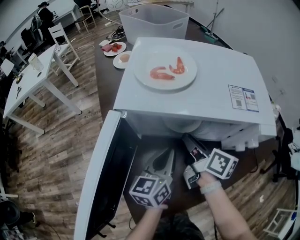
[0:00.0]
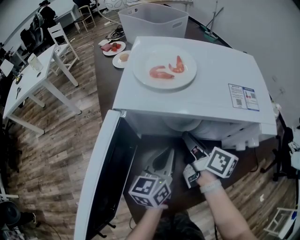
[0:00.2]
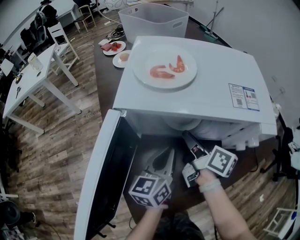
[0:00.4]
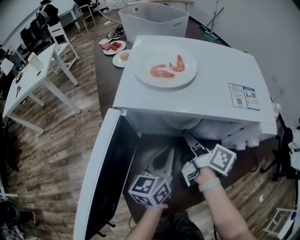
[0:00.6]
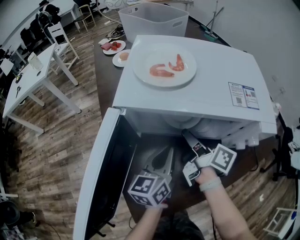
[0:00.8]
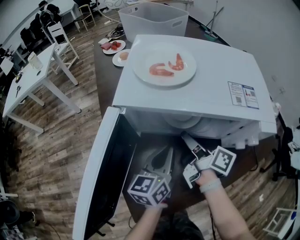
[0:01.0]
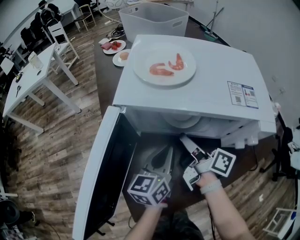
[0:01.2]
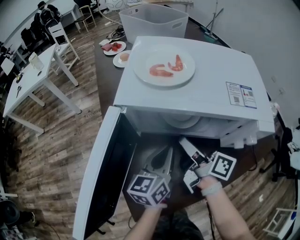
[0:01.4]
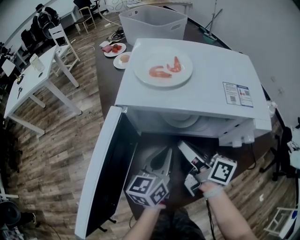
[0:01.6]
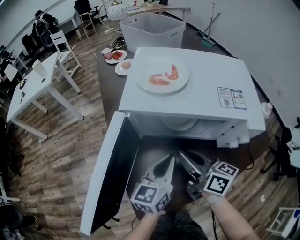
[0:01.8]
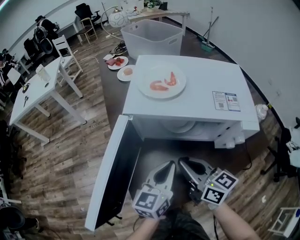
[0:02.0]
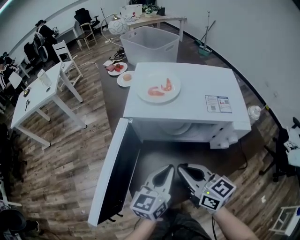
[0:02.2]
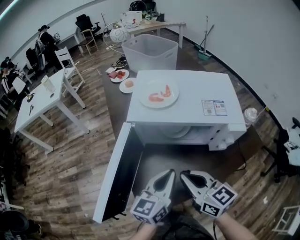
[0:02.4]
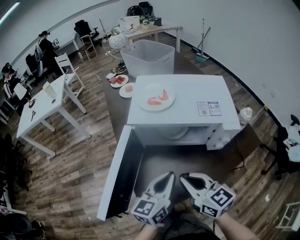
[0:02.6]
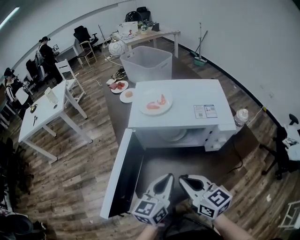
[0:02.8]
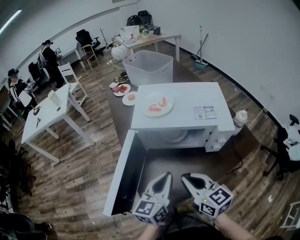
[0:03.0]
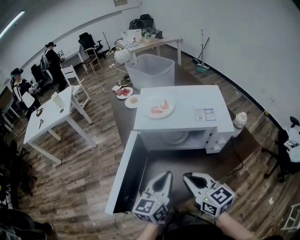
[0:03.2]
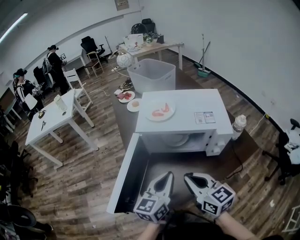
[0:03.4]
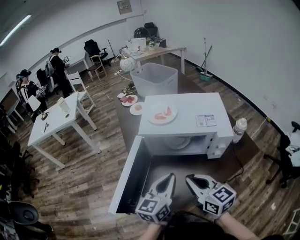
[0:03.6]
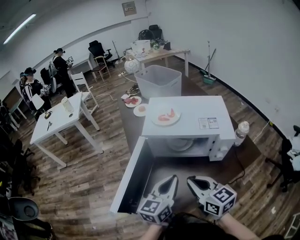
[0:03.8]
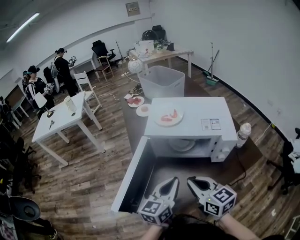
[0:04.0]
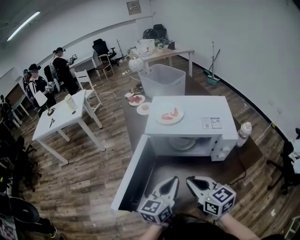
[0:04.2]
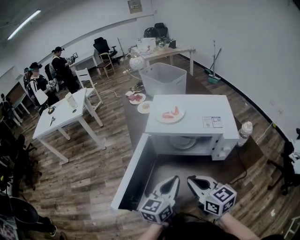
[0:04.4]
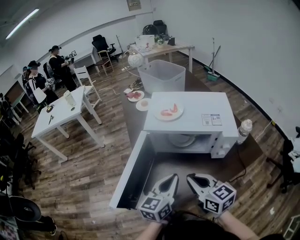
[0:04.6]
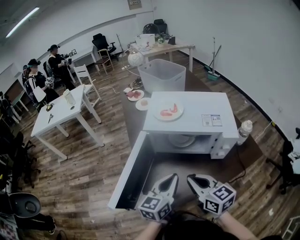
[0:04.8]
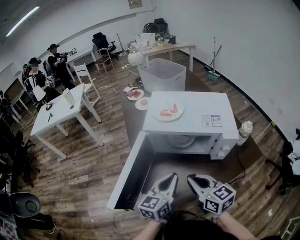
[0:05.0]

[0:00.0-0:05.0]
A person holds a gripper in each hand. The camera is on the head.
0:00.0 to 0:01.6: The right gripper moves some 5 cm.
0:01.6 to 0:03.4: The left gripper moves upward and backward, some 15 cm. Meanwhile the right gripper travels backward and upward by some 20 cm, and rotates around the line of its fingers by some 50 degrees, counterclockwise from behind.
0:03.4 to 0:05.0: The grippers stay close to where they were, moving slightly.

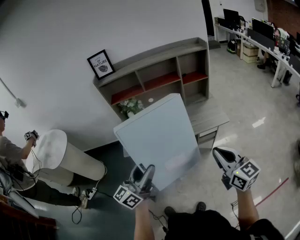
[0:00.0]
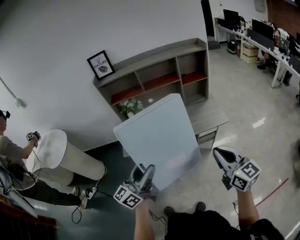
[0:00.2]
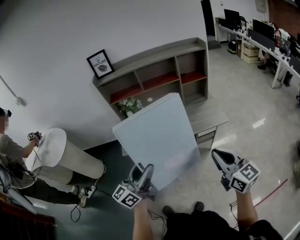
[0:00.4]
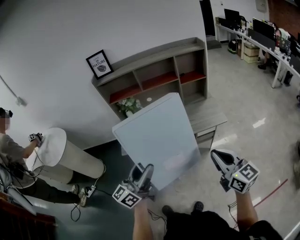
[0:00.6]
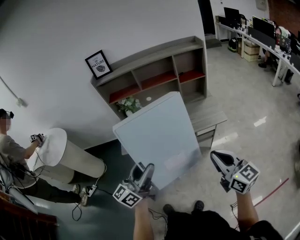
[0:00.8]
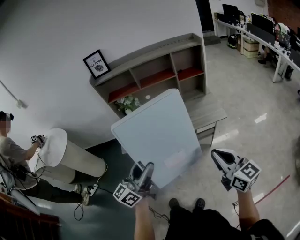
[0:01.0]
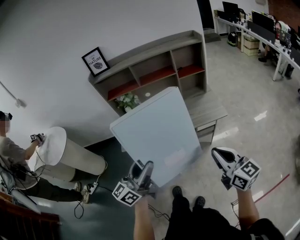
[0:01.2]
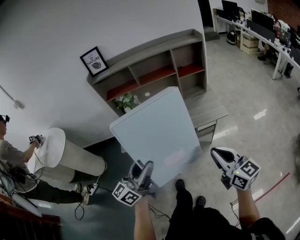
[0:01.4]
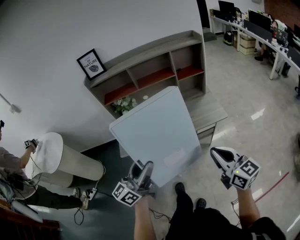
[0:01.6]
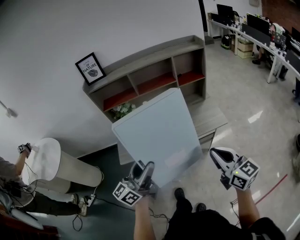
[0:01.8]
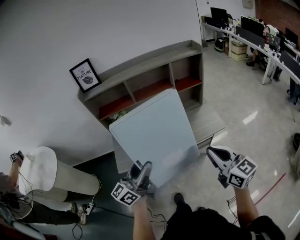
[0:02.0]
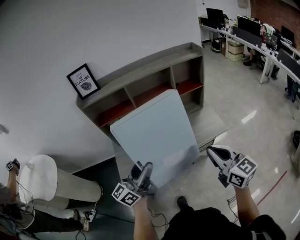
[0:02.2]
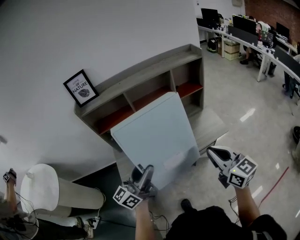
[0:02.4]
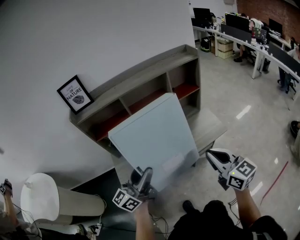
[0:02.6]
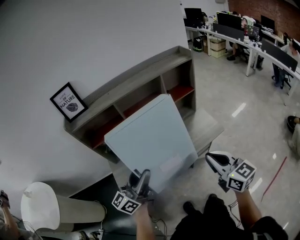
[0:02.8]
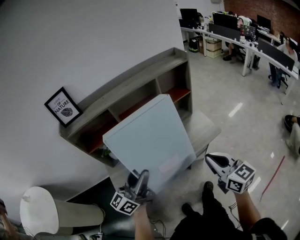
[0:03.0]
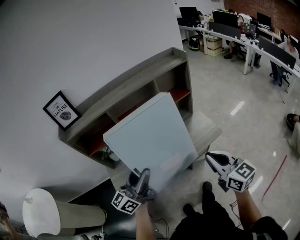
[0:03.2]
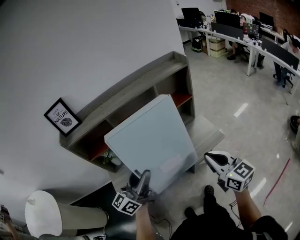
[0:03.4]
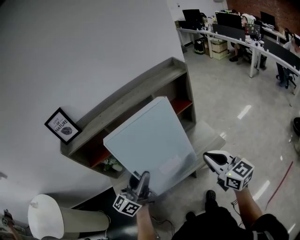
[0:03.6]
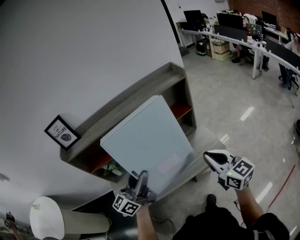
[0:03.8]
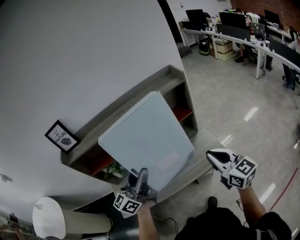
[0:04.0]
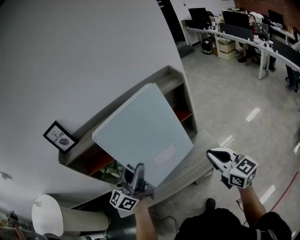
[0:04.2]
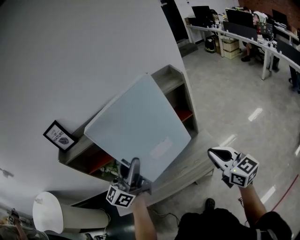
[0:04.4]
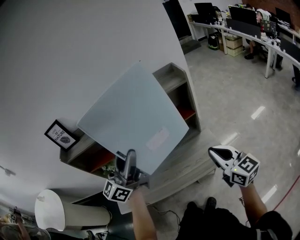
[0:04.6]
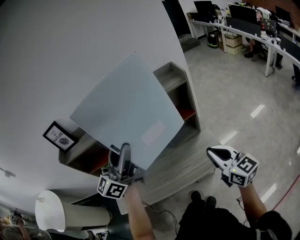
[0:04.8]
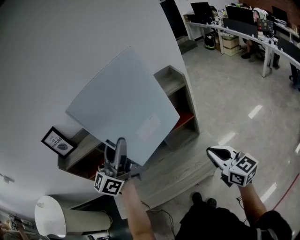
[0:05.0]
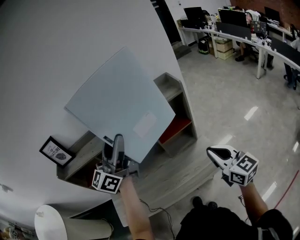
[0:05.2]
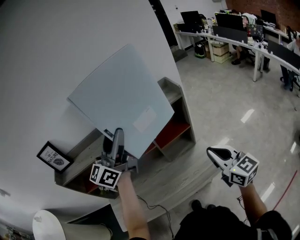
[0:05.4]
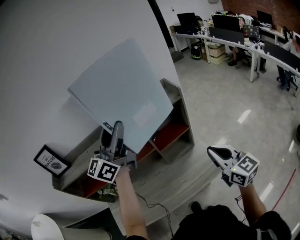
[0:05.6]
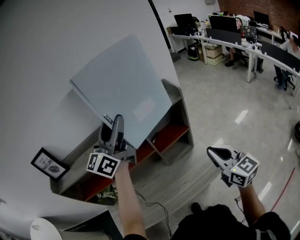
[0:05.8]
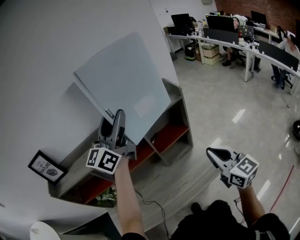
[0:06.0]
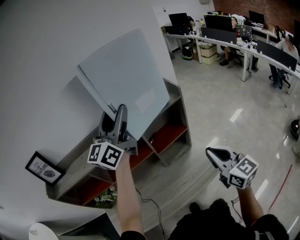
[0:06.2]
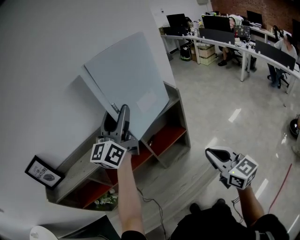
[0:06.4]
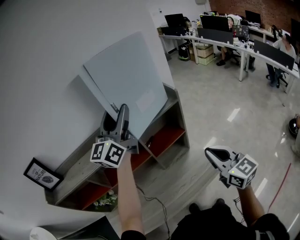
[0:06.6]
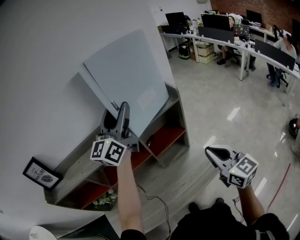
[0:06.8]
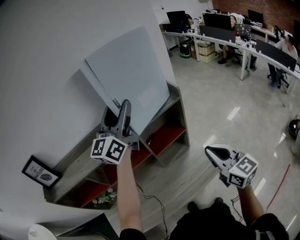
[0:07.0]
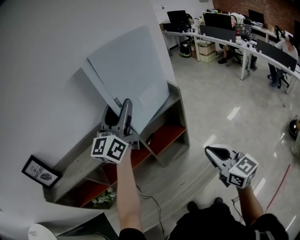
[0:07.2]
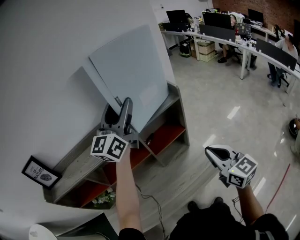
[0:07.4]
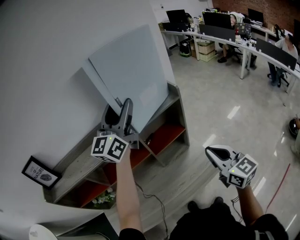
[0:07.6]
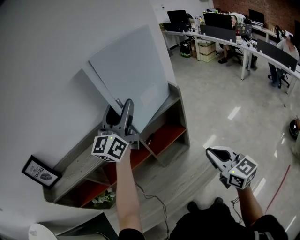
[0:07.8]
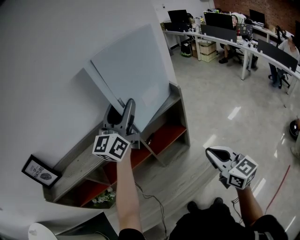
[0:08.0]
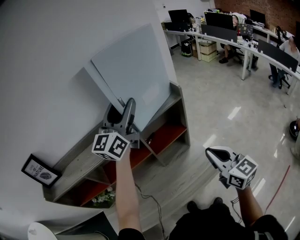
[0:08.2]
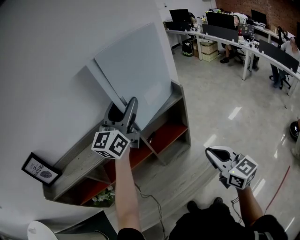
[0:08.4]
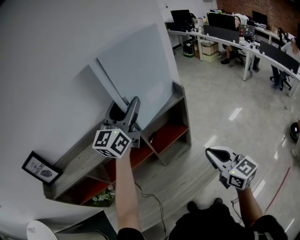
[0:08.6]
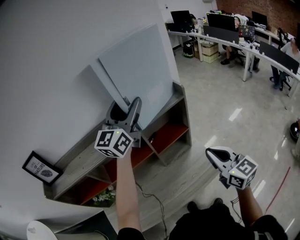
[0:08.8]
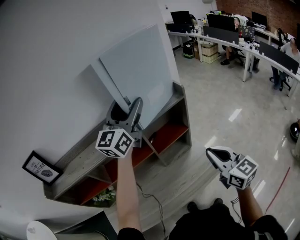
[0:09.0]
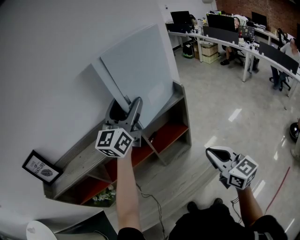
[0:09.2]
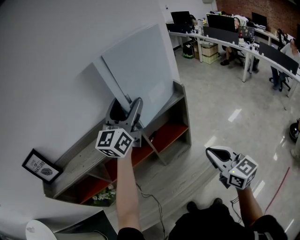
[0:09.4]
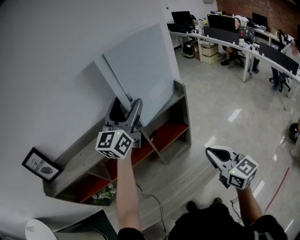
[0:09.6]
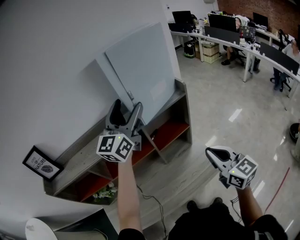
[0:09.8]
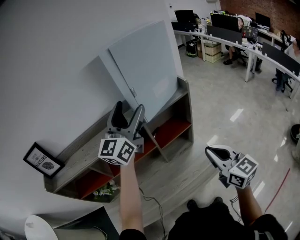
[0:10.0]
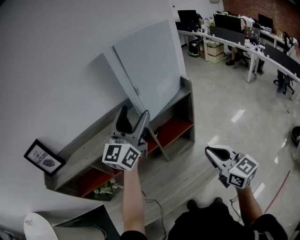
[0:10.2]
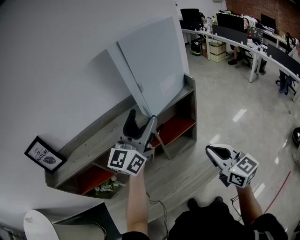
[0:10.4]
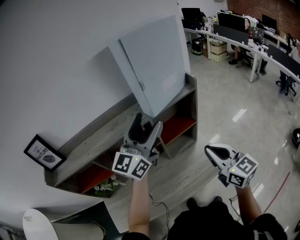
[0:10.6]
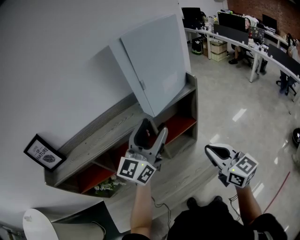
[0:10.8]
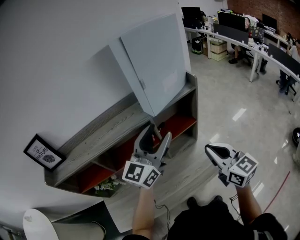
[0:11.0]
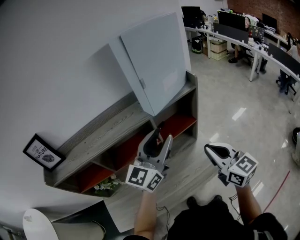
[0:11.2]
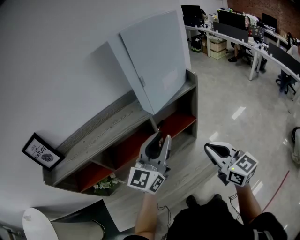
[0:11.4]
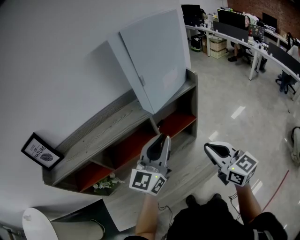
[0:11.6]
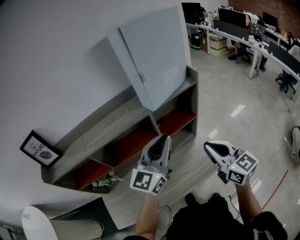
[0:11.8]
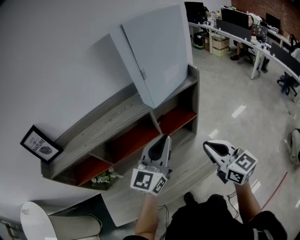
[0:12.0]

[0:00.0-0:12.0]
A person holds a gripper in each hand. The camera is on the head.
0:00.0 to 0:01.6: The grippers make only small movements.
0:01.6 to 0:03.0: Both grippers travel together forward, about 20 cm.
0:03.0 to 0:04.4: The right gripper is displaced forward and to the right by approximately 25 cm; the left gripper travels forward, to the right and upward by roughly 25 cm.
0:04.4 to 0:06.0: The right gripper goes approximately 10 cm forward. The left gripper goes about 25 cm forward and upward.
0:06.0 to 0:07.6: The left gripper is displaced forward by roughly 5 cm.
0:07.6 to 0:09.0: The grippers stay close to where they were, moving slightly.
0:09.0 to 0:10.4: The left gripper travels backward by about 10 cm.
0:10.4 to 0:12.0: The left gripper shifts roughly 15 cm downward and backward, and closes.

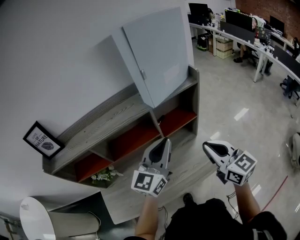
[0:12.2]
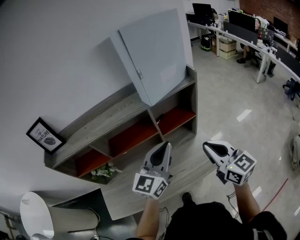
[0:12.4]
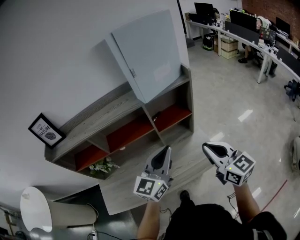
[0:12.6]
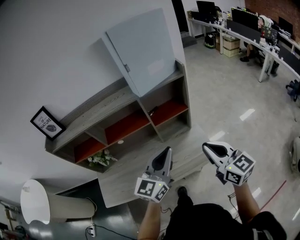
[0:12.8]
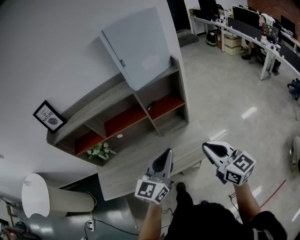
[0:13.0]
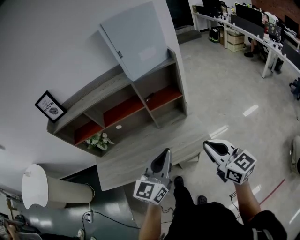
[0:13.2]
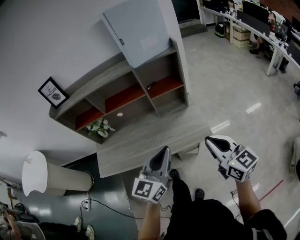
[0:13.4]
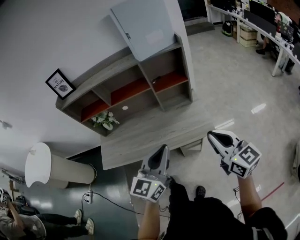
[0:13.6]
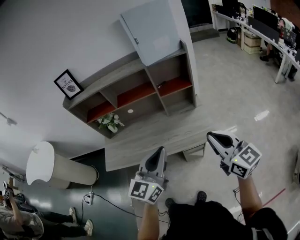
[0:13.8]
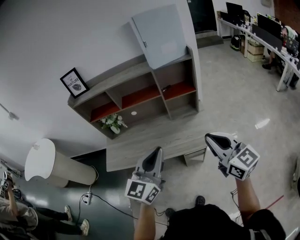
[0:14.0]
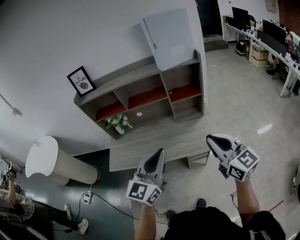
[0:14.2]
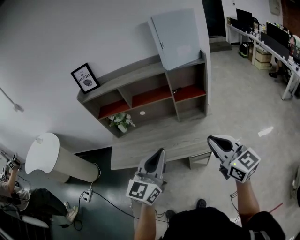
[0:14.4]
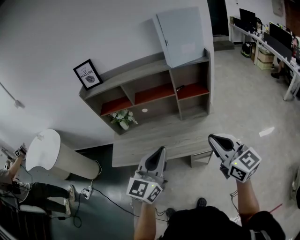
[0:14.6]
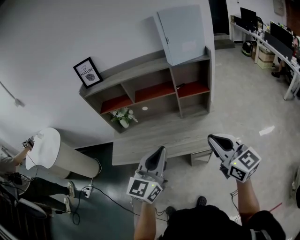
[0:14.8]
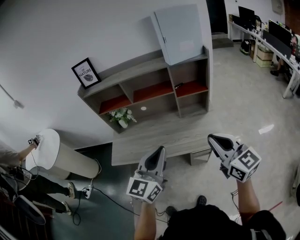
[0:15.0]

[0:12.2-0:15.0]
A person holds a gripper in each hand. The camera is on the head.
0:12.2 to 0:13.6: The left gripper goes some 30 cm backward. Meanwhile the right gripper is displaced backward and to the right by approximately 25 cm.
0:13.6 to 0:15.0: Both grippers travel together to the left, approximately 10 cm.

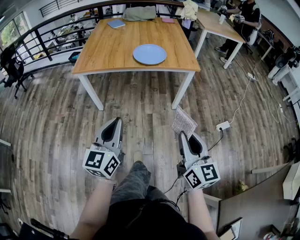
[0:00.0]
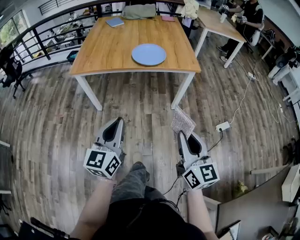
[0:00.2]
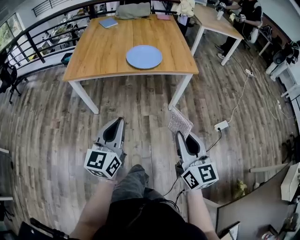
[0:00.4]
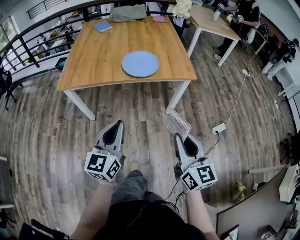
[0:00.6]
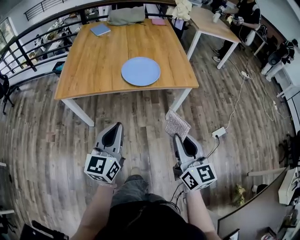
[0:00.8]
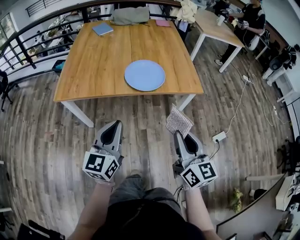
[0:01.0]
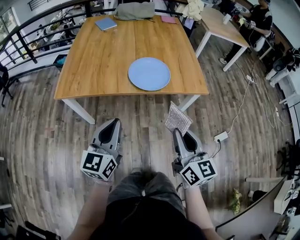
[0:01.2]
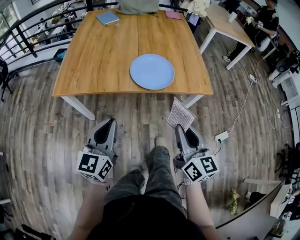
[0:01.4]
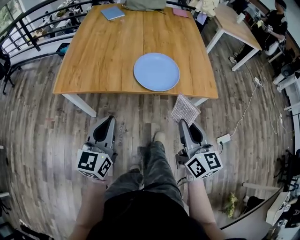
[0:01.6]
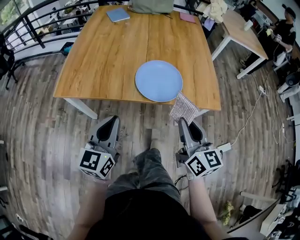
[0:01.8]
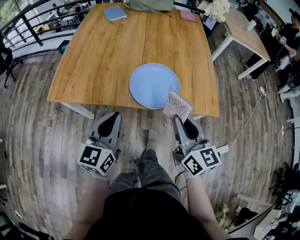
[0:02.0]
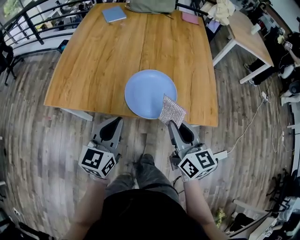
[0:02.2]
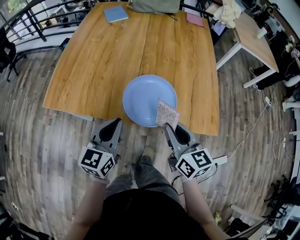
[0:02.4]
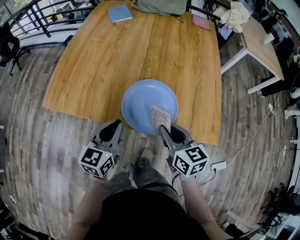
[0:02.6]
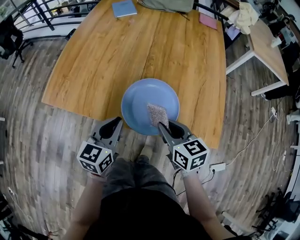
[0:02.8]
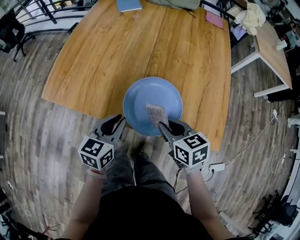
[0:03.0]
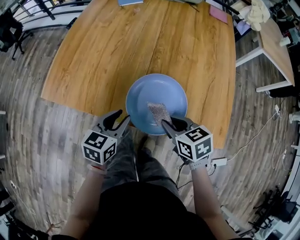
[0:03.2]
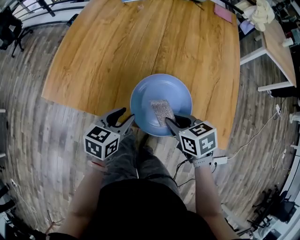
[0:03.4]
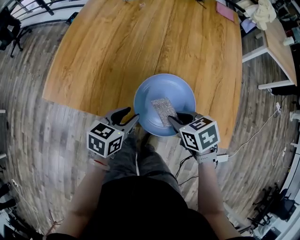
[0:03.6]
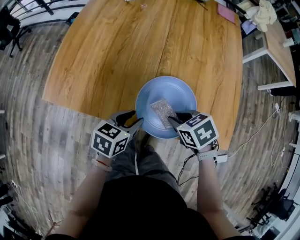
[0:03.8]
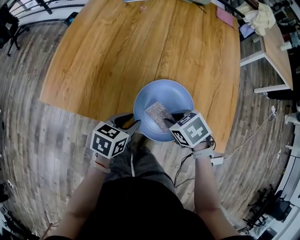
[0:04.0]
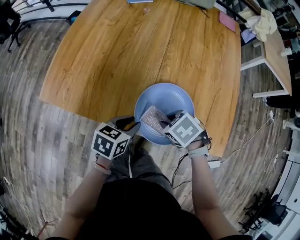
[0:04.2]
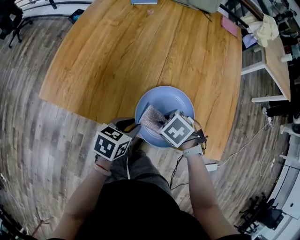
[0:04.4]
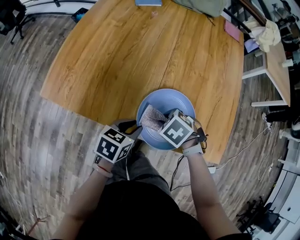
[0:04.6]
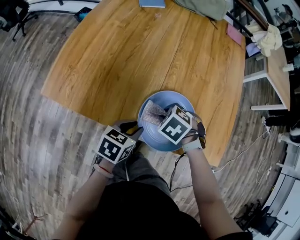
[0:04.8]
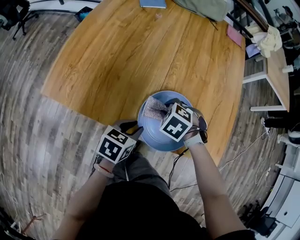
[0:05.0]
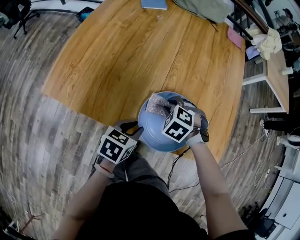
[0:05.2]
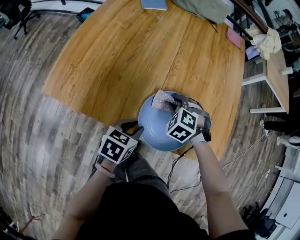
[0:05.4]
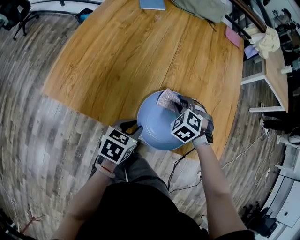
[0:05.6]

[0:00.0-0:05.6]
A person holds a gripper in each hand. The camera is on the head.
0:00.0 to 0:01.4: Both grippers travel together forward, roughly 30 cm.
0:01.4 to 0:02.8: The left gripper heads forward and to the right, covering some 25 cm; the right gripper travels forward by roughly 25 cm, and rotates approximately 40 degrees.
0:02.8 to 0:04.2: The grippers both shift downward by roughly 10 cm. The left gripper turns by some 30 degrees, and opens up, while the right gripper points its fingers roughly 40 degrees further downward.
0:04.2 to 0:05.6: The right gripper shifts by some 10 cm, and rotates roughly 40 degrees.
